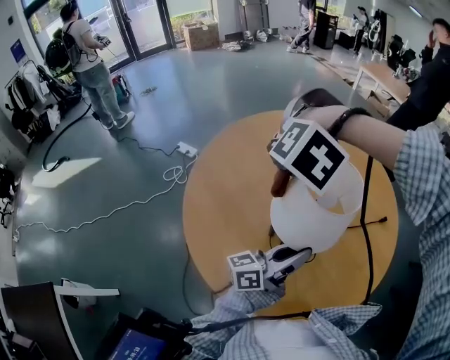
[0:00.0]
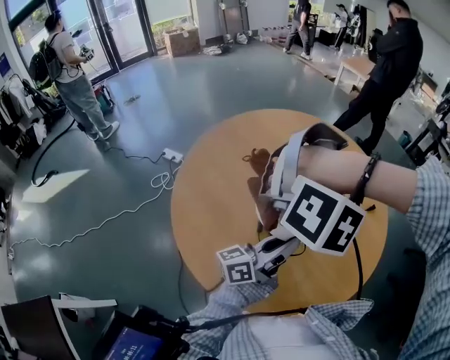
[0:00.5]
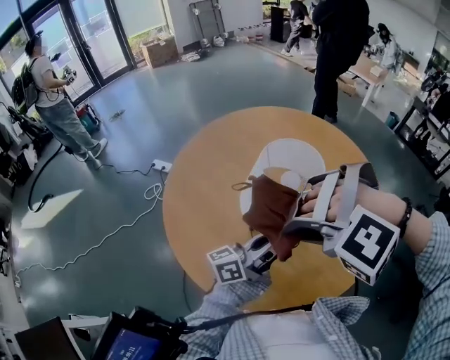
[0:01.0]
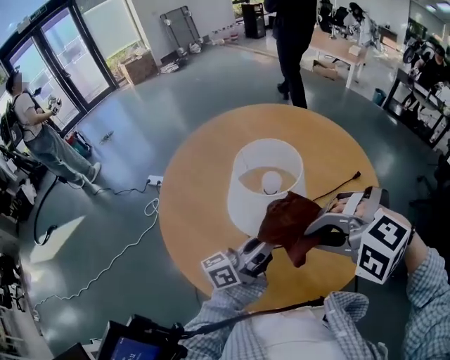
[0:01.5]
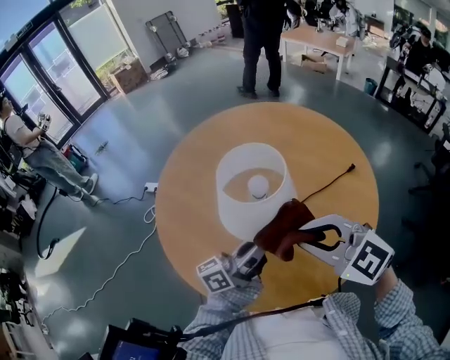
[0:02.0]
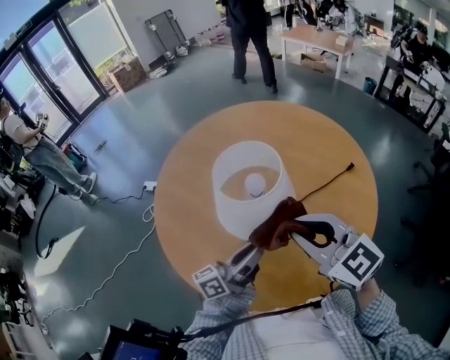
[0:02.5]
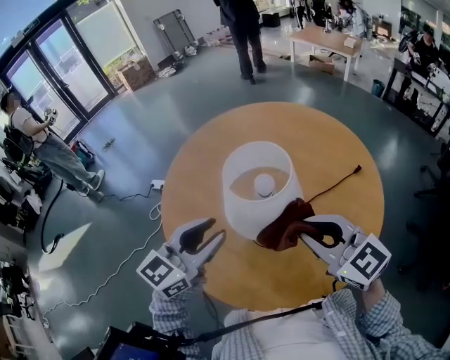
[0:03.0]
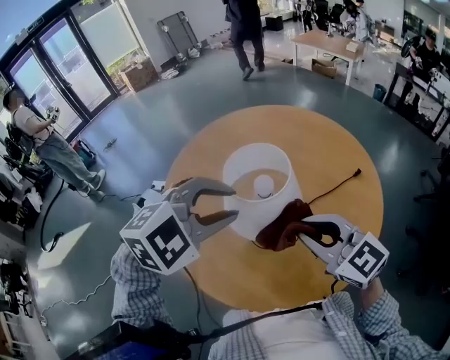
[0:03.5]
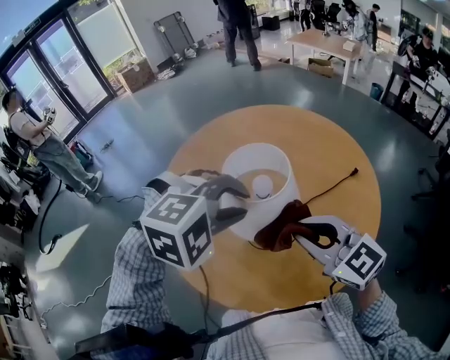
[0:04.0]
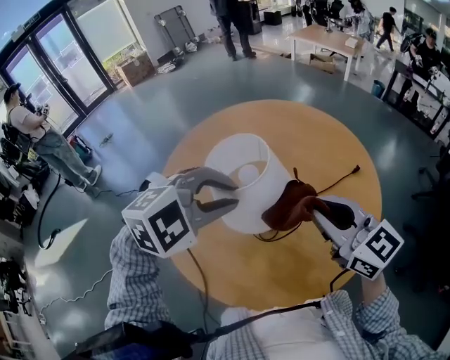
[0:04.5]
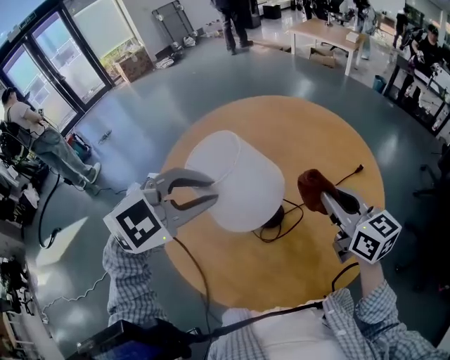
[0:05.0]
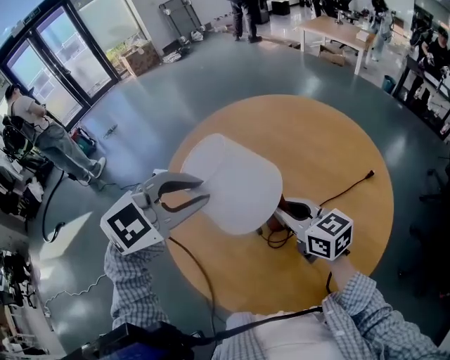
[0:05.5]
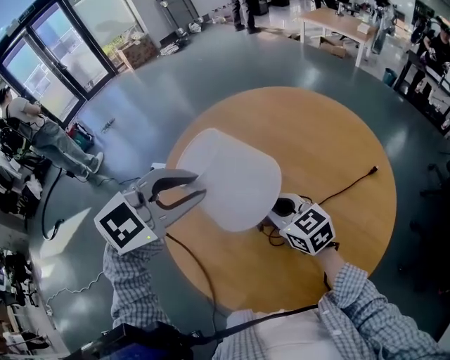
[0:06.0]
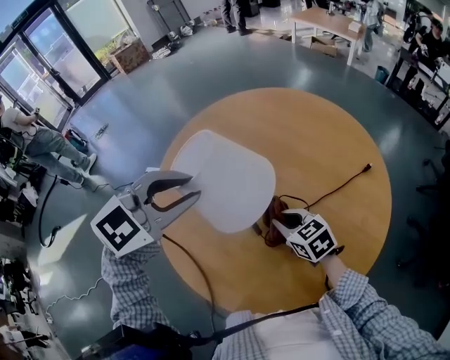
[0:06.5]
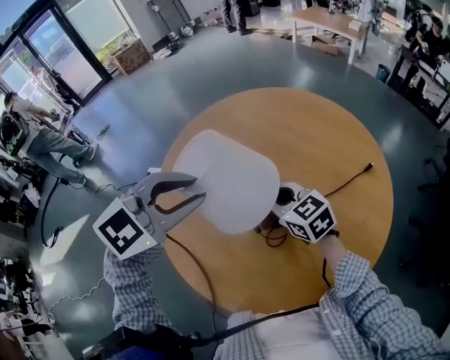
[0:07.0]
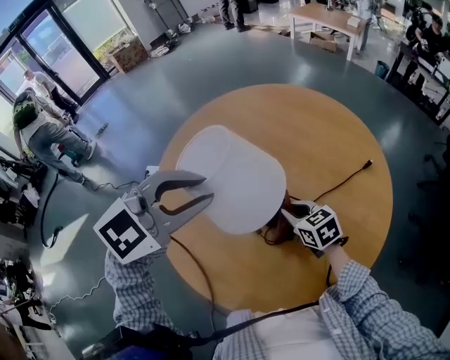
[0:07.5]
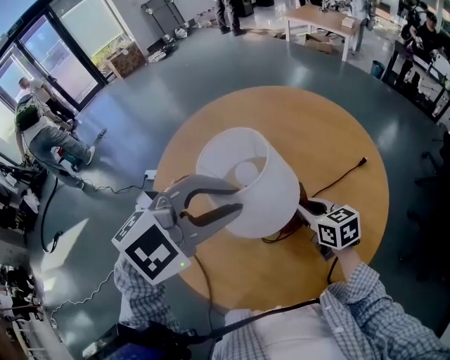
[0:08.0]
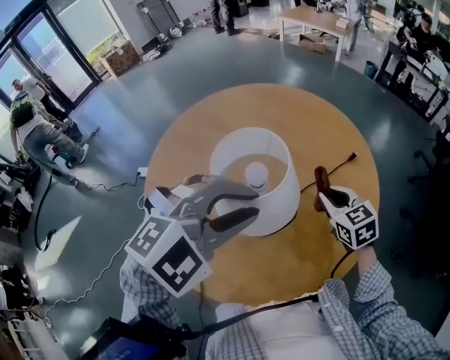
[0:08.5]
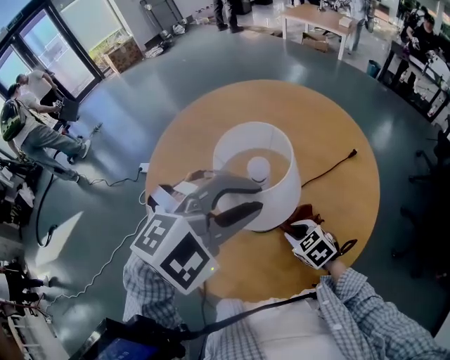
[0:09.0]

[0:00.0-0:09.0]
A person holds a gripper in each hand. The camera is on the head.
0:00.0 to 0:02.0: The right gripper ends up roughly 20 cm from where it was, and tips its fingers upward by roughly 60 degrees.
0:02.0 to 0:04.5: The right gripper travels forward by roughly 5 cm, and turns by some 30 degrees; the left gripper travels upward by approximately 10 cm, and tips its fingers downward by about 60 degrees.
0:04.5 to 0:07.0: The right gripper travels downward, to the left and forward by about 25 cm, and turns by some 20 degrees. Meanwhile the left gripper travels to the left and forward by some 10 cm, and swivels some 30 degrees.
0:07.0 to 0:09.0: The right gripper heads downward, backward and to the right, covering approximately 25 cm, and changes its angle by approximately 30 degrees; the left gripper is displaced to the right and backward by about 15 cm, and changes its angle by some 30 degrees.

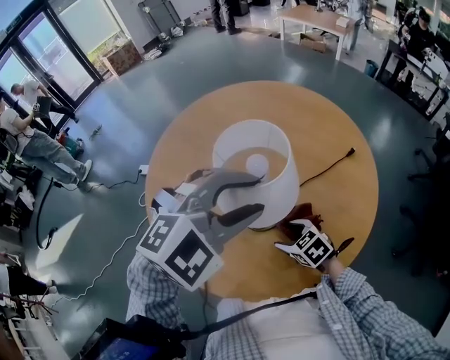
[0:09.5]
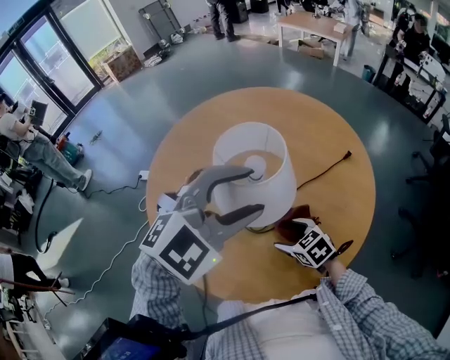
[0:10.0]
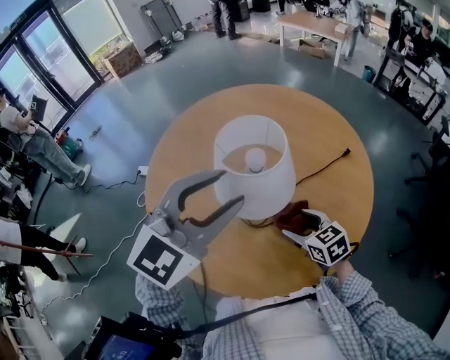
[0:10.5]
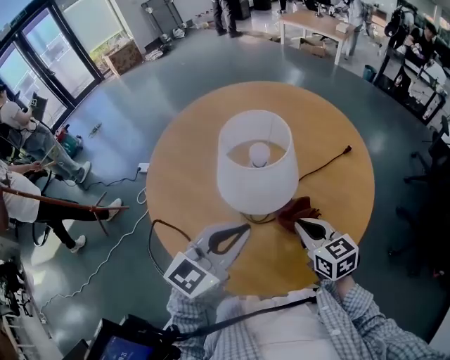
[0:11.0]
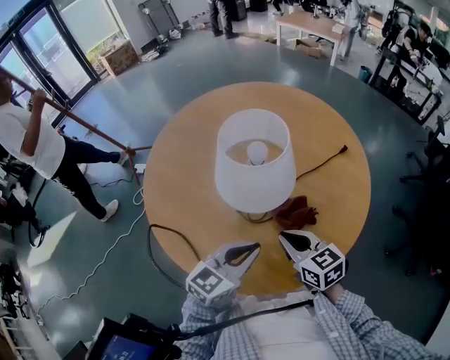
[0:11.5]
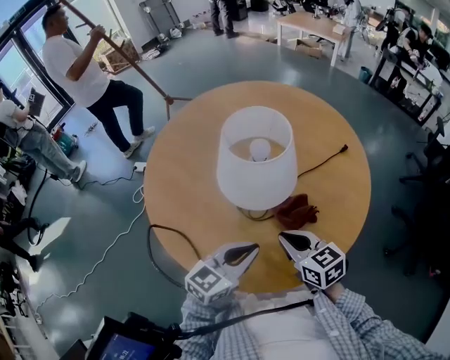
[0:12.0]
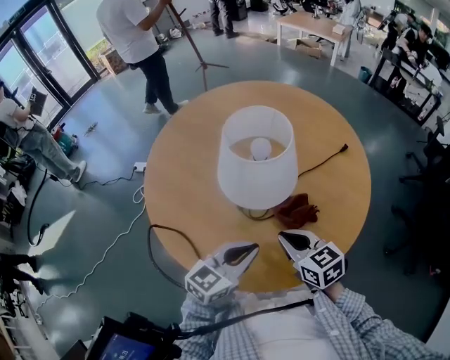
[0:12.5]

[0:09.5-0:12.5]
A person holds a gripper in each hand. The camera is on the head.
0:09.5 to 0:11.0: The left gripper is displaced downward and backward by approximately 10 cm, rotates around the line of its fingers by some 40 degrees, counterclockwise from behind, and closes, while the right gripper heads upward, covering about 10 cm, turns by about 30 degrees, and closes.
0:11.0 to 0:12.5: The right gripper shifts by roughly 5 cm. The left gripper goes roughly 10 cm downward.

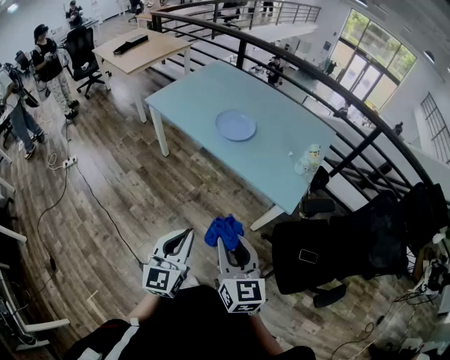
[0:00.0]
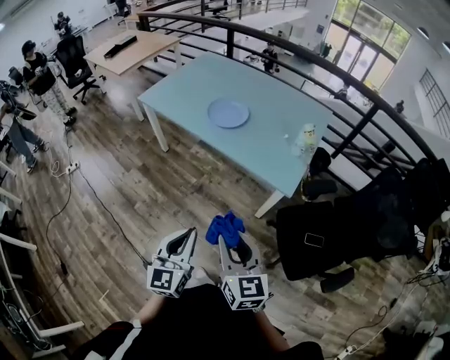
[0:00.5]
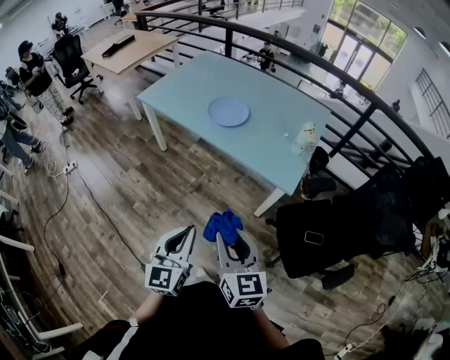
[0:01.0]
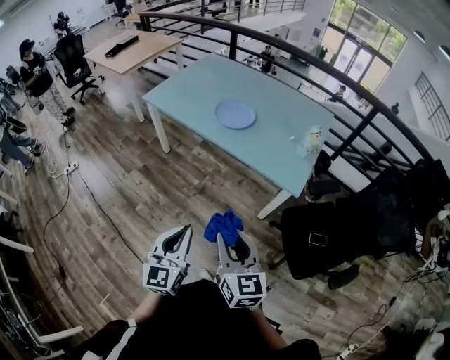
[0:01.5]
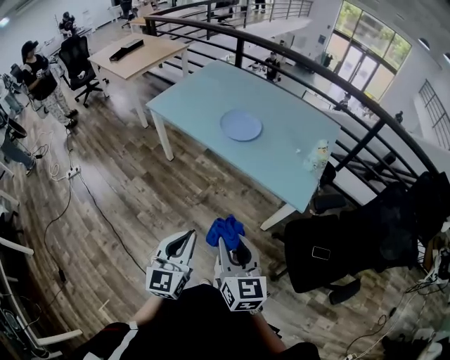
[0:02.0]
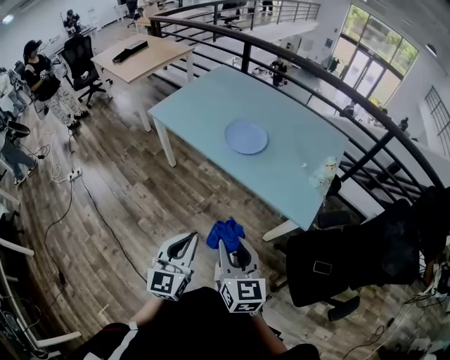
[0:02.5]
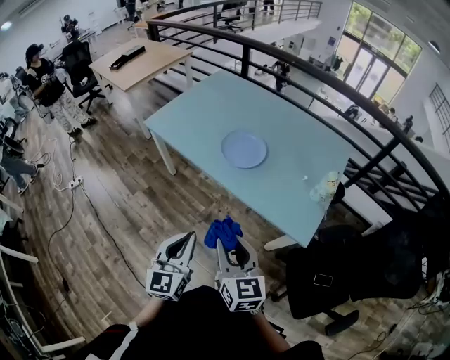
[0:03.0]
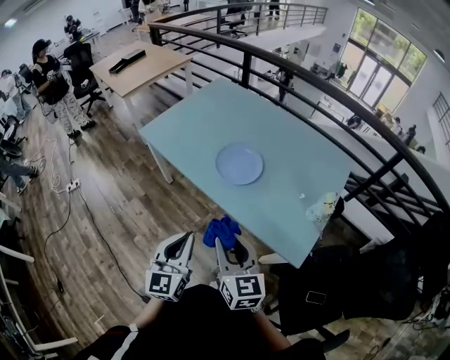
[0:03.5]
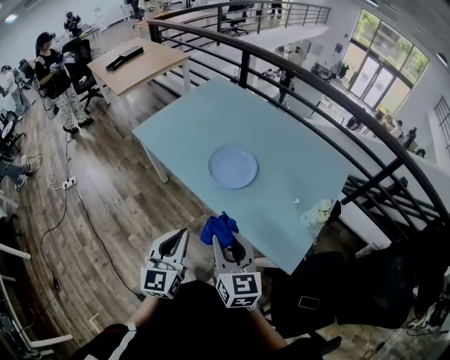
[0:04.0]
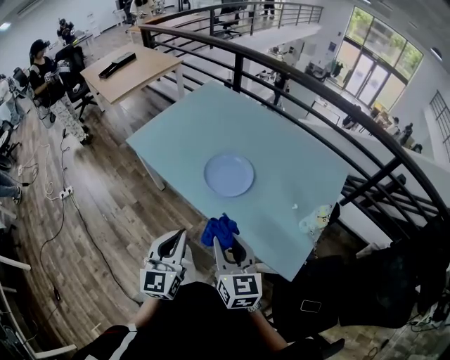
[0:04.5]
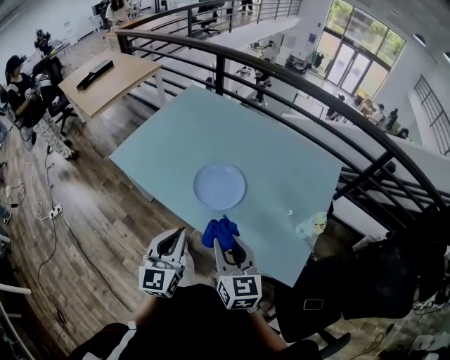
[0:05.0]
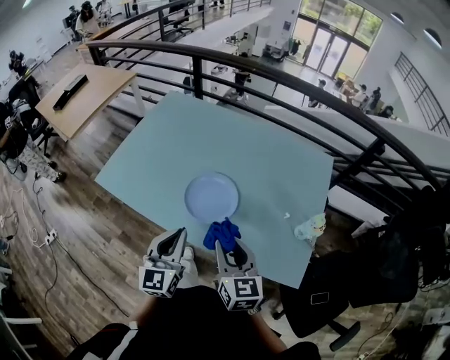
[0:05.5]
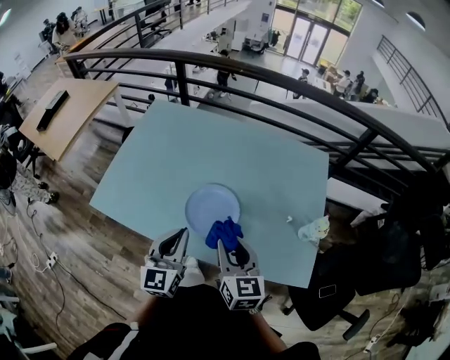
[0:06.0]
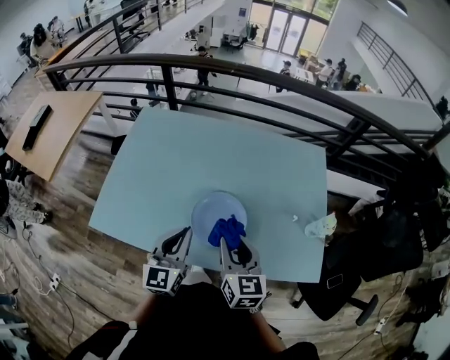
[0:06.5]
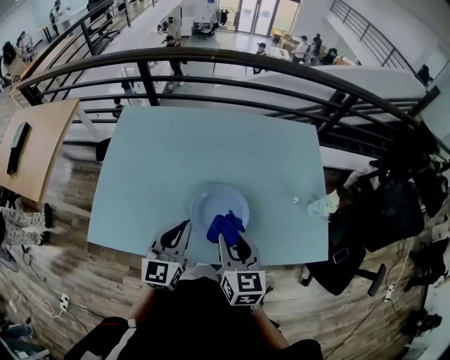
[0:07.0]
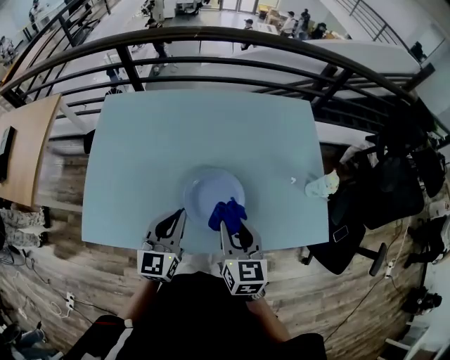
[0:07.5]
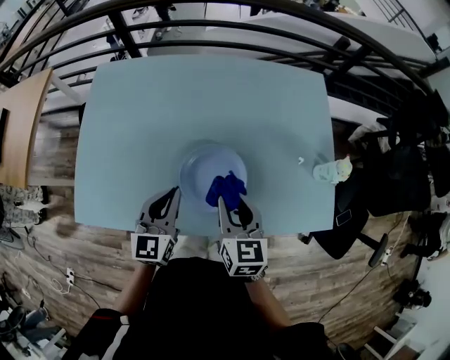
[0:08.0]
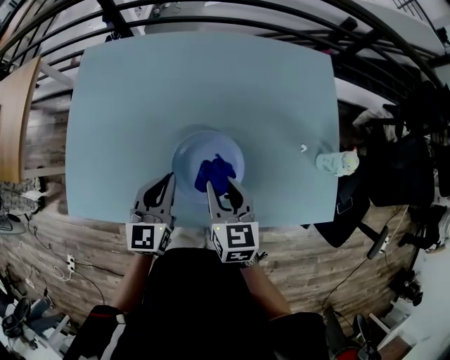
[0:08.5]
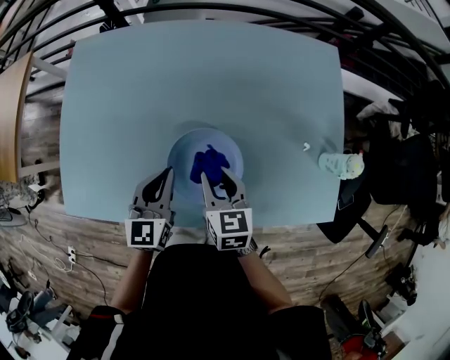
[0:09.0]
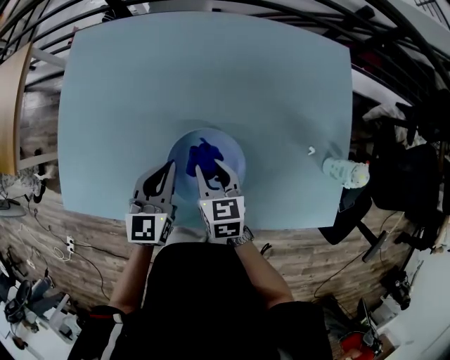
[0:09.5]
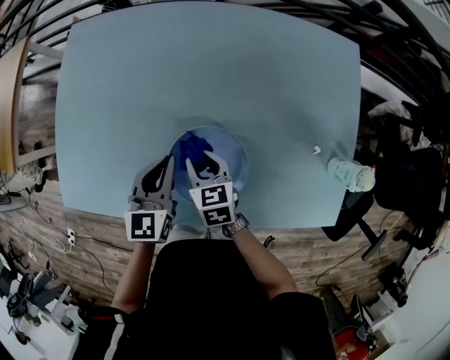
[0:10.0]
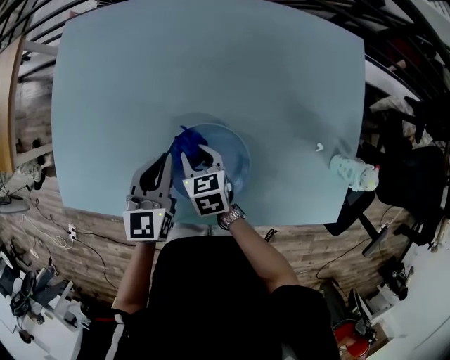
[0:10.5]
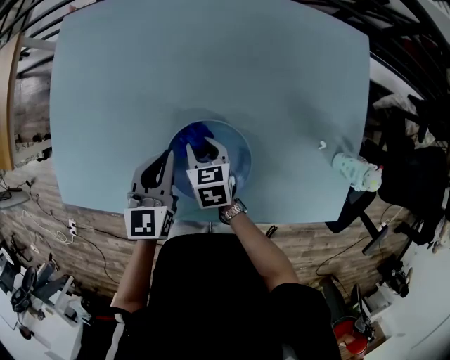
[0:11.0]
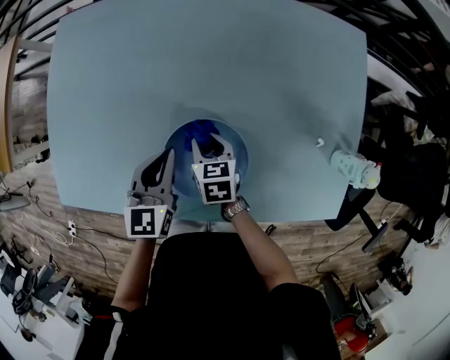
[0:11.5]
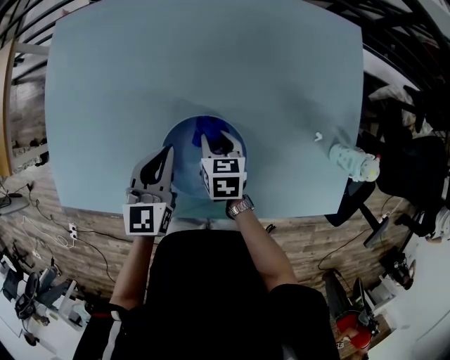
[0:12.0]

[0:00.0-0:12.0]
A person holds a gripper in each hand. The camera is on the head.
0:00.0 to 0:02.0: There are only small adjustments of the grippers.
0:02.0 to 0:04.0: The two grippers go some 25 cm forward.
0:04.0 to 0:06.0: Both grippers travel together forward, some 25 cm. The left gripper changes its angle by some 20 degrees. Meanwhile the right gripper rotates roughly 30 degrees.
0:06.0 to 0:08.0: The right gripper heads forward and downward, covering approximately 10 cm, and rotates roughly 20 degrees, while the left gripper goes some 15 cm forward, downward and to the left.
0:08.0 to 0:10.0: The left gripper travels forward and downward by approximately 10 cm; the right gripper shifts some 20 cm downward and forward, and rotates some 30 degrees.
0:10.0 to 0:12.0: The right gripper travels to the right by approximately 5 cm.

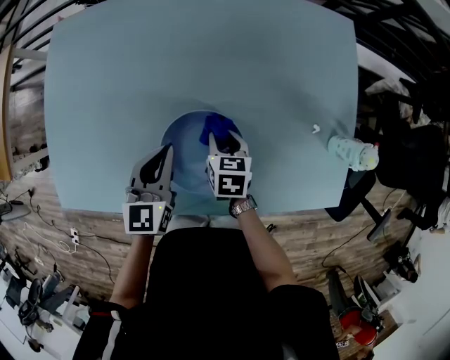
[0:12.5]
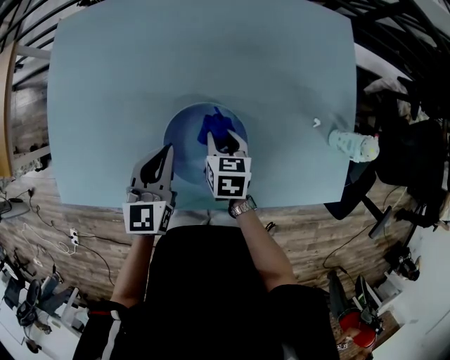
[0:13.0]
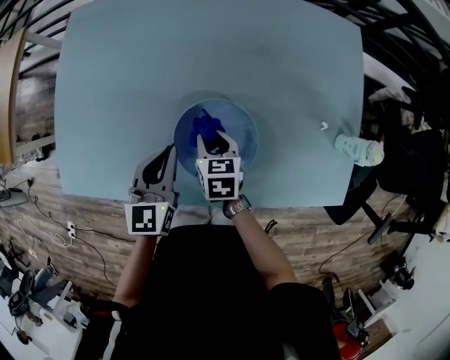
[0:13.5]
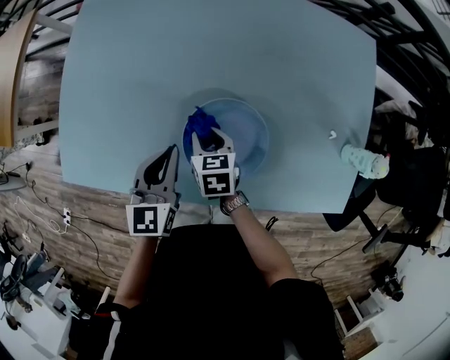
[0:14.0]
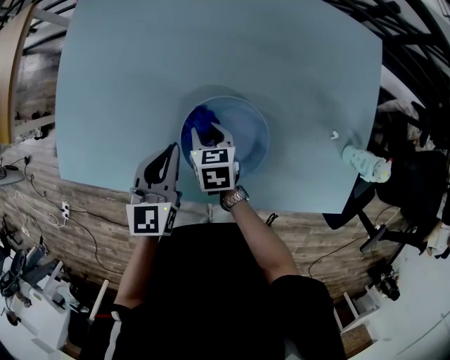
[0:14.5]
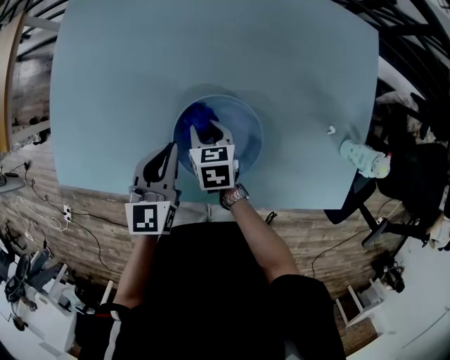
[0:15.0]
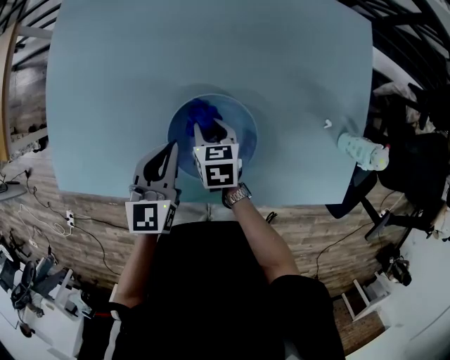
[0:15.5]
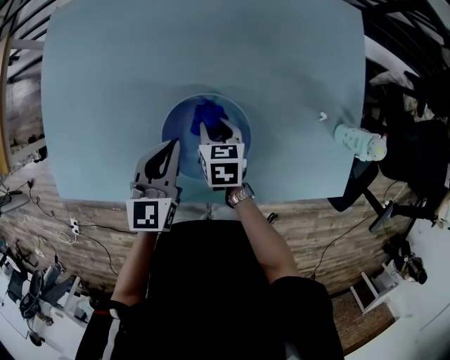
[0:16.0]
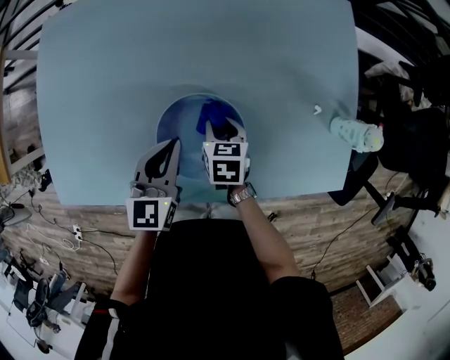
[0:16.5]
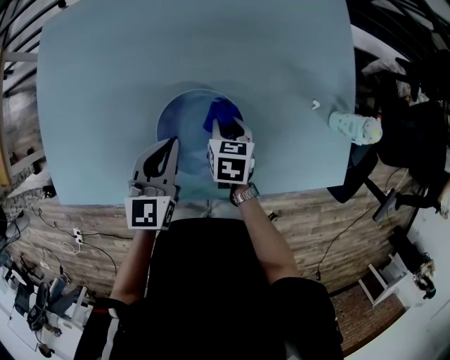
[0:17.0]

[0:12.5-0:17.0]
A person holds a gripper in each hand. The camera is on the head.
0:12.5 to 0:14.5: The left gripper travels to the left by about 5 cm; the right gripper travels to the left by approximately 15 cm.
0:14.5 to 0:17.0: The right gripper goes about 15 cm to the right, and rotates roughly 20 degrees. Meanwhile the left gripper moves to the right, some 10 cm.
